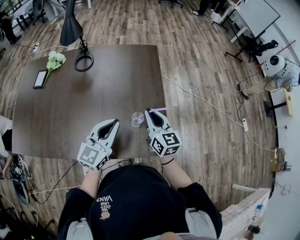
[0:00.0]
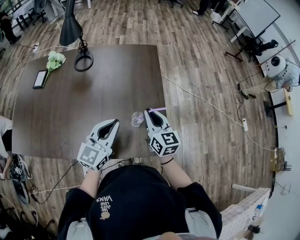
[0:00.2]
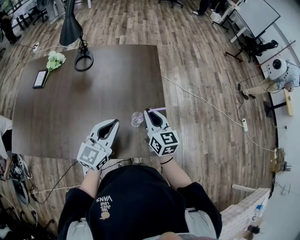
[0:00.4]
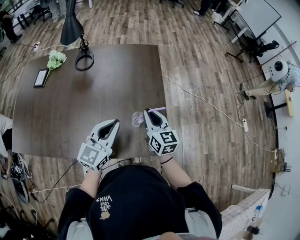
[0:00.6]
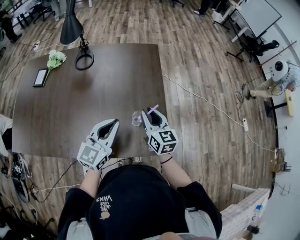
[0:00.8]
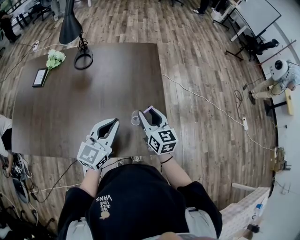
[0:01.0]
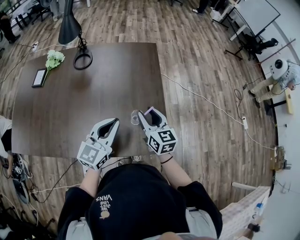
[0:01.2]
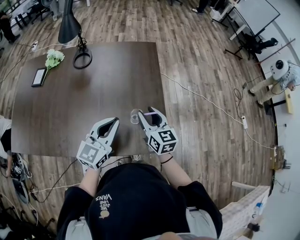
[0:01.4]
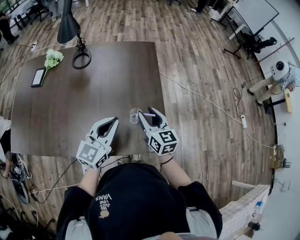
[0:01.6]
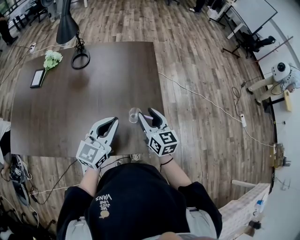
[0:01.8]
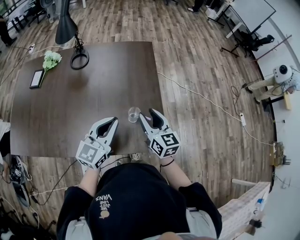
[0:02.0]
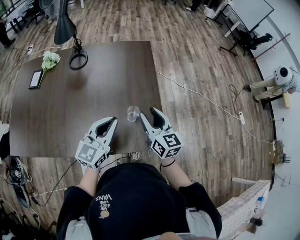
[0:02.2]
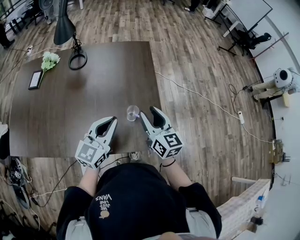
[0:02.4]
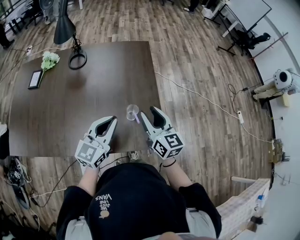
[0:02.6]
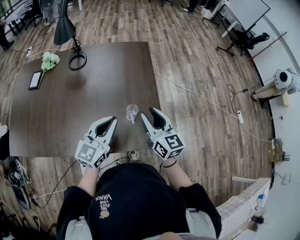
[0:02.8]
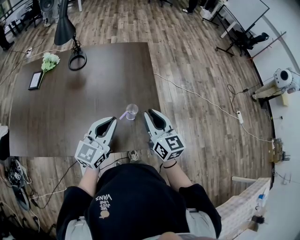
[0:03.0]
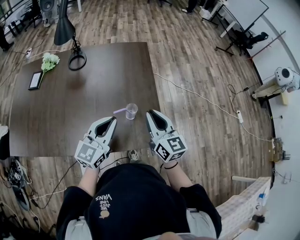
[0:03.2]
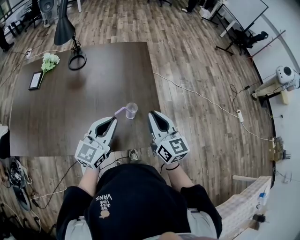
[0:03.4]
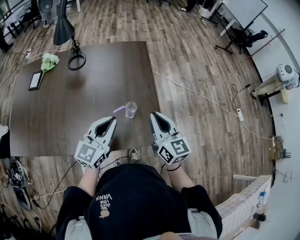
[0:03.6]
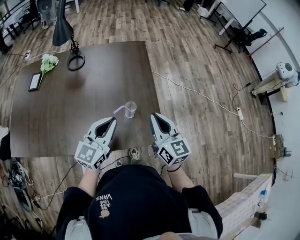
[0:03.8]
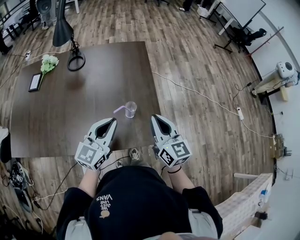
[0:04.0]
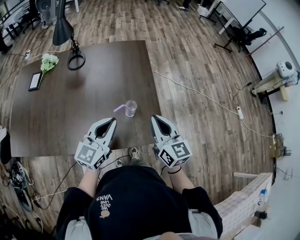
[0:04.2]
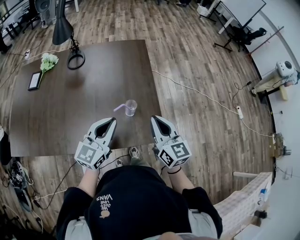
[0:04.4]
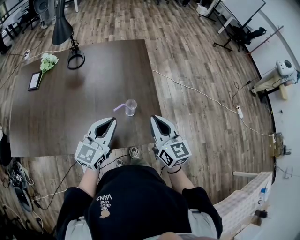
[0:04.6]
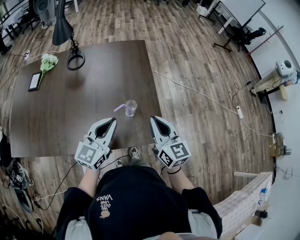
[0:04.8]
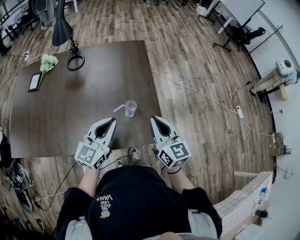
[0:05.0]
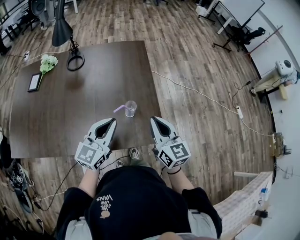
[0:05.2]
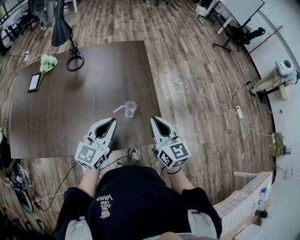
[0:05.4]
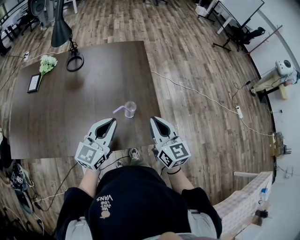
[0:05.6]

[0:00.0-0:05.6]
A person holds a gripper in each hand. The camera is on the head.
0:00.0 to 0:01.4: The right gripper opens.
0:01.4 to 0:02.8: The right gripper is displaced upward by approximately 5 cm.
0:02.8 to 0:04.2: The right gripper moves backward, approximately 5 cm, and closes.
0:04.2 to 0:05.6: Both grippers stay put.

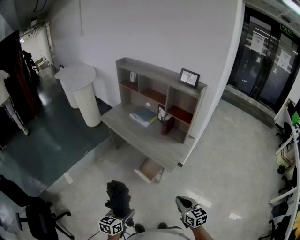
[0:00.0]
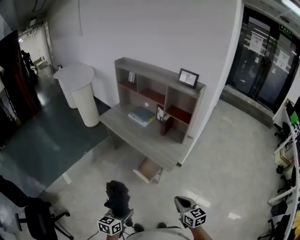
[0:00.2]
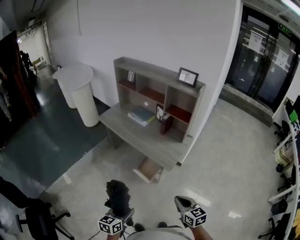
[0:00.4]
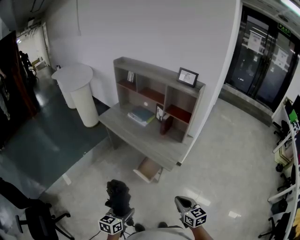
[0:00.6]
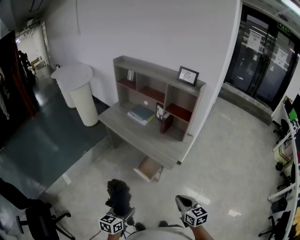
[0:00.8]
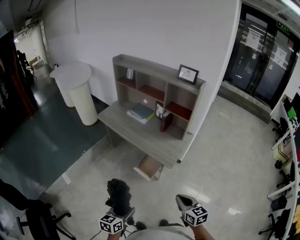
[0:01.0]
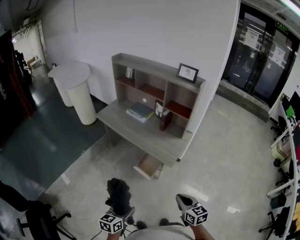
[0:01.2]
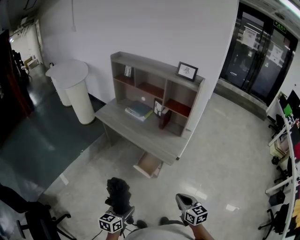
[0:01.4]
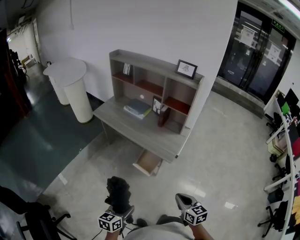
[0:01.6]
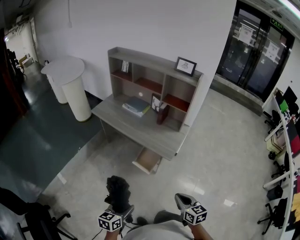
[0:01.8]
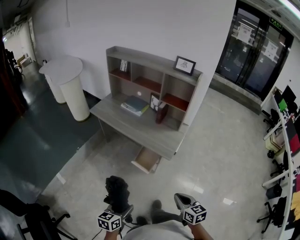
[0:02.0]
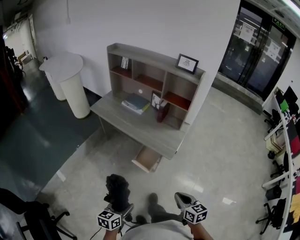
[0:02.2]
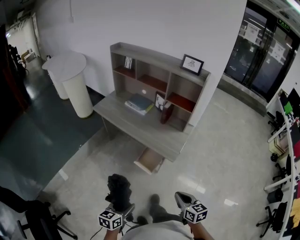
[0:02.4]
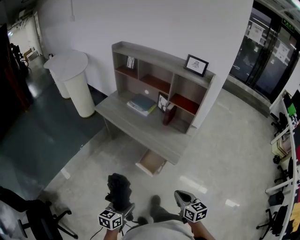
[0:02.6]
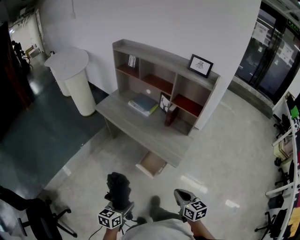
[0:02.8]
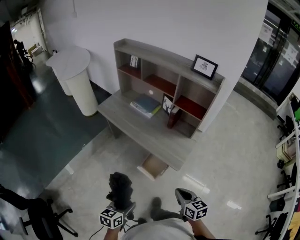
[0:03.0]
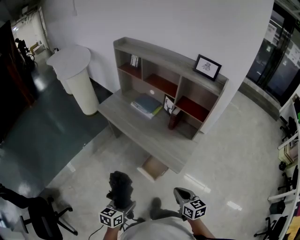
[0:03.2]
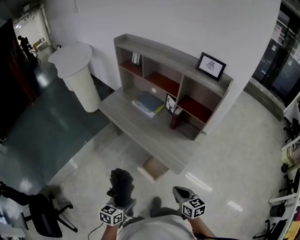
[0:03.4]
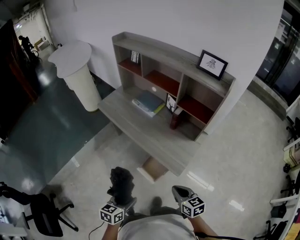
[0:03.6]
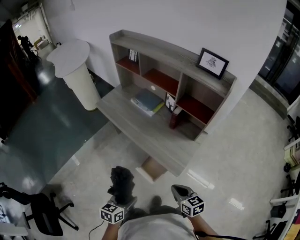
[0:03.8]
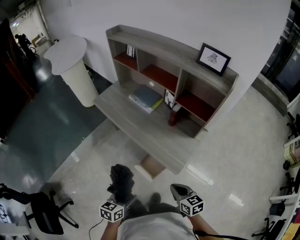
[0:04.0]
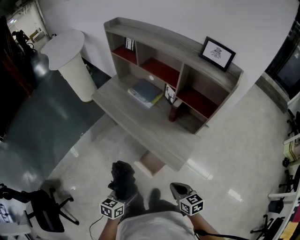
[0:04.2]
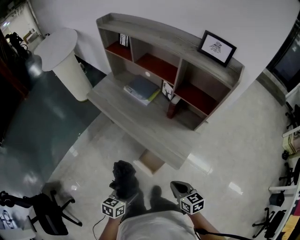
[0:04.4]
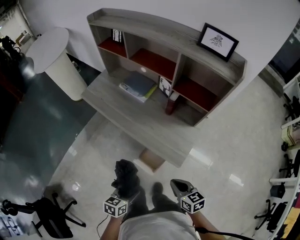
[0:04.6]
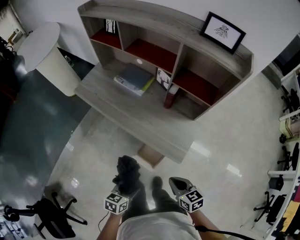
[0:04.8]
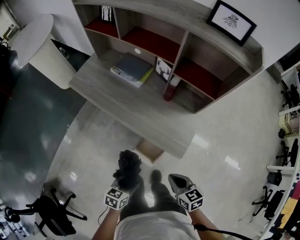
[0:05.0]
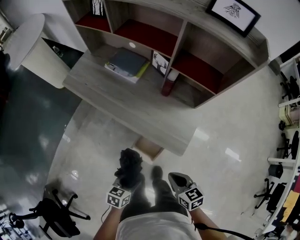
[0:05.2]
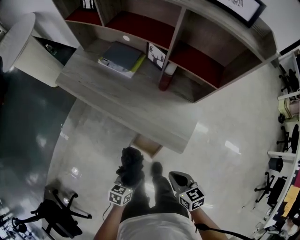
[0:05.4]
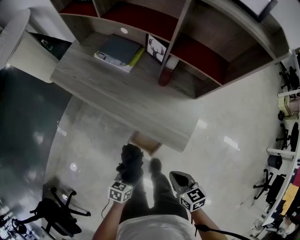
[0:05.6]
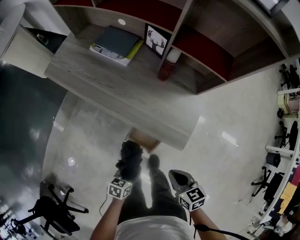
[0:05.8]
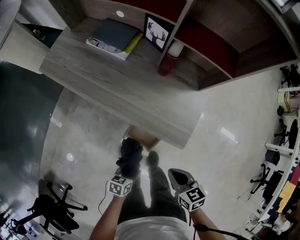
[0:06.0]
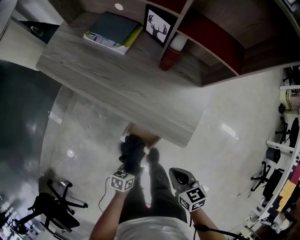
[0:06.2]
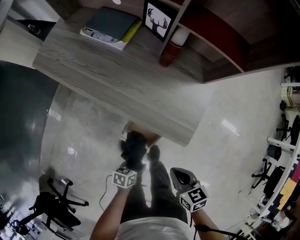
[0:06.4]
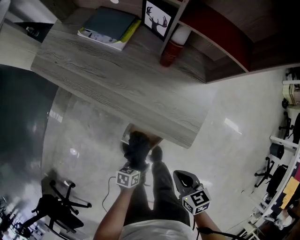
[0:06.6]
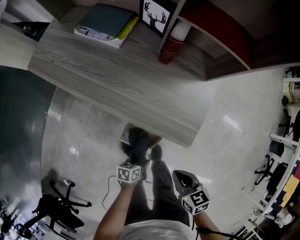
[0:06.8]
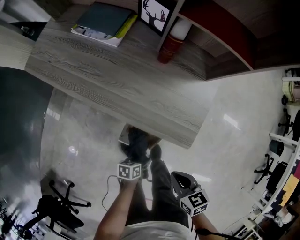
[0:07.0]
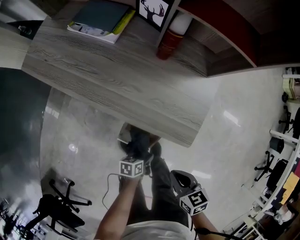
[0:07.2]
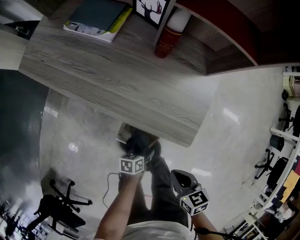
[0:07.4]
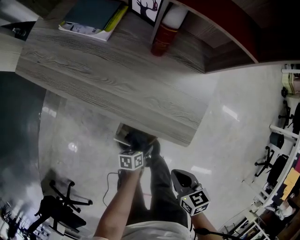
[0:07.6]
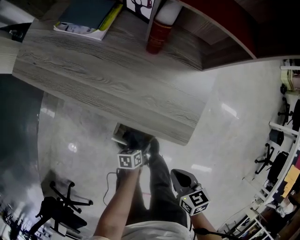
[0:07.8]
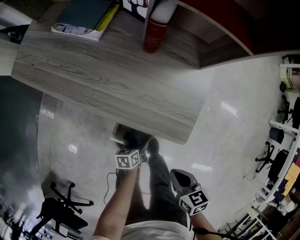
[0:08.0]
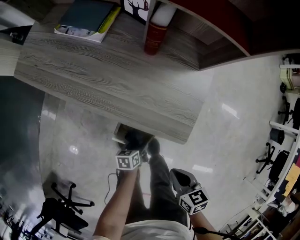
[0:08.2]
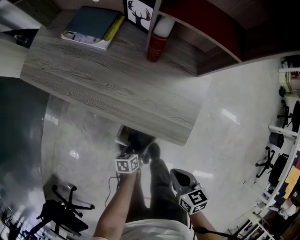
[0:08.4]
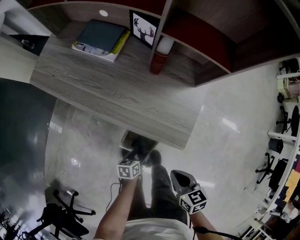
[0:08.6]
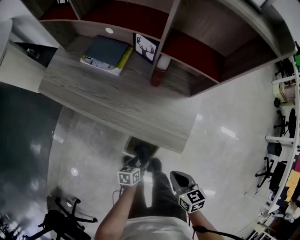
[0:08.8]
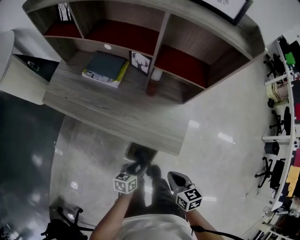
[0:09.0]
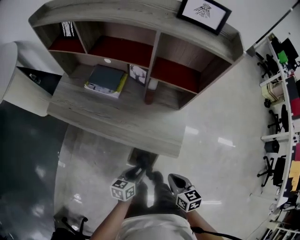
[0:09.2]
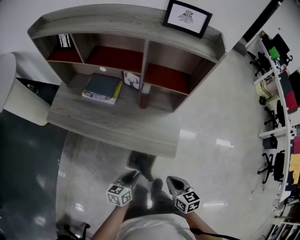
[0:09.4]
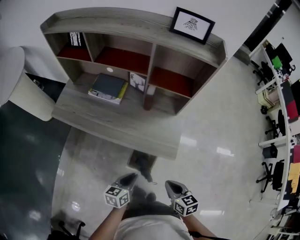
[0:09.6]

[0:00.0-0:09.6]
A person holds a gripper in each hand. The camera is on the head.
0:00.0 to 0:01.6: The two grippers go some 5 cm to the left.
0:01.6 to 0:03.2: The grippers both shift forward by about 20 cm.
0:03.2 to 0:04.8: The two grippers go some 20 cm forward and downward.
0:04.8 to 0:06.4: The left gripper travels downward by approximately 30 cm, and turns by approximately 20 degrees. The right gripper travels downward by some 15 cm.
0:06.4 to 0:08.0: The left gripper goes approximately 15 cm downward and forward; the right gripper goes about 5 cm downward.
0:08.0 to 0:09.6: The right gripper goes approximately 20 cm upward; the left gripper moves upward, some 40 cm, changes its angle by roughly 30 degrees, and closes its fingers.

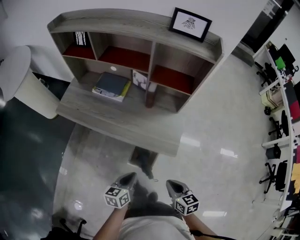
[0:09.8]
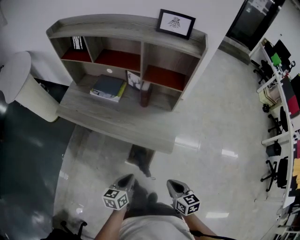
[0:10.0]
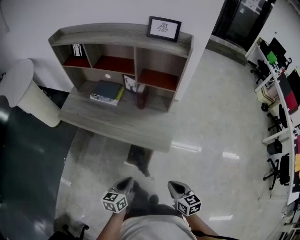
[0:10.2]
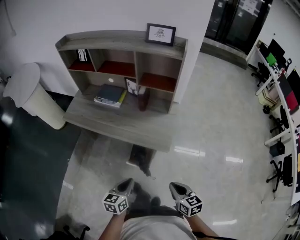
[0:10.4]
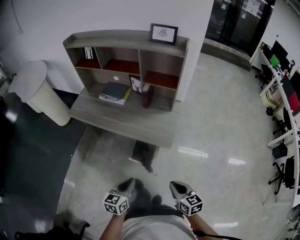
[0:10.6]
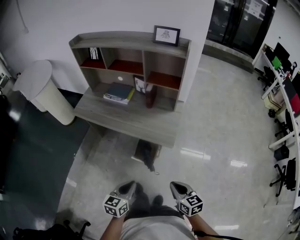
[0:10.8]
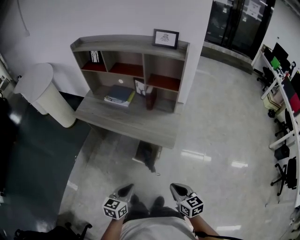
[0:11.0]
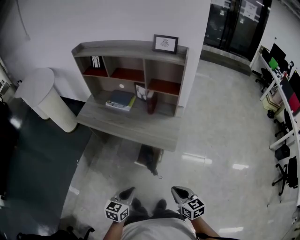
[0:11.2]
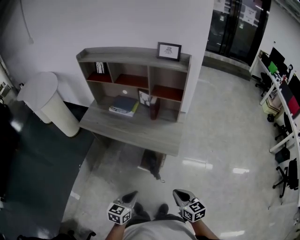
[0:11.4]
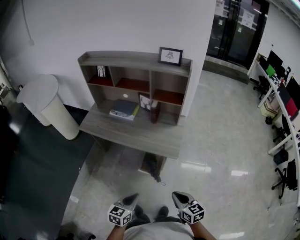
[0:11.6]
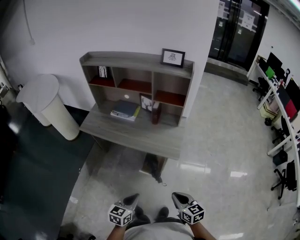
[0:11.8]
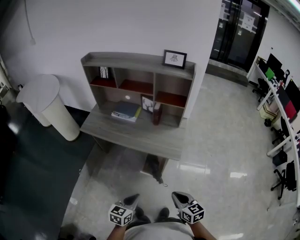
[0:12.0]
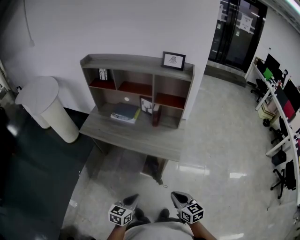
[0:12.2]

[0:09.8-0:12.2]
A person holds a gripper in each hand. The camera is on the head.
0:09.8 to 0:11.0: The two grippers go approximately 20 cm backward and upward.
0:11.0 to 0:12.2: The two grippers go some 10 cm to the left.

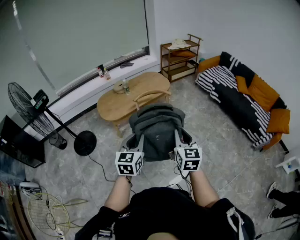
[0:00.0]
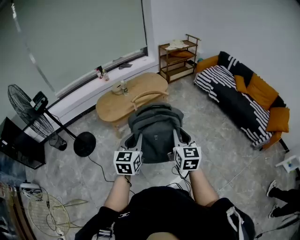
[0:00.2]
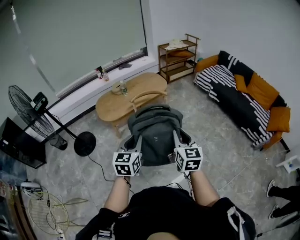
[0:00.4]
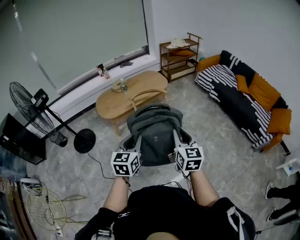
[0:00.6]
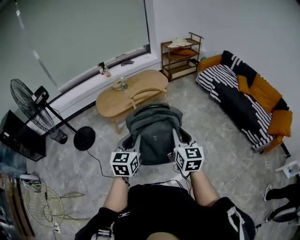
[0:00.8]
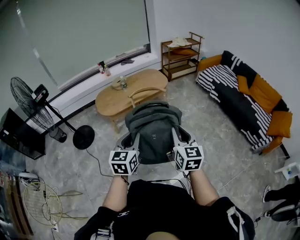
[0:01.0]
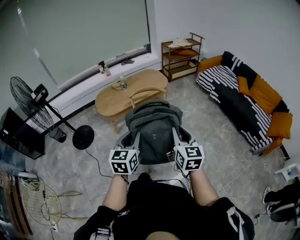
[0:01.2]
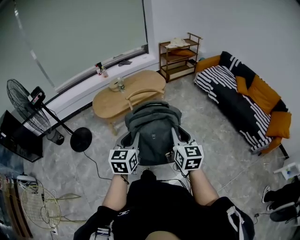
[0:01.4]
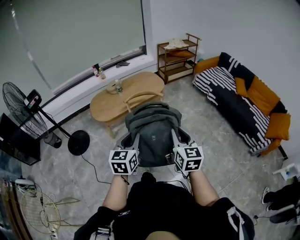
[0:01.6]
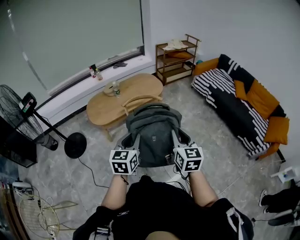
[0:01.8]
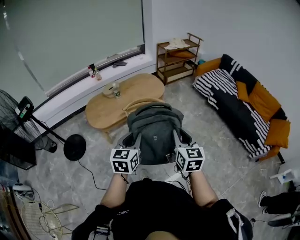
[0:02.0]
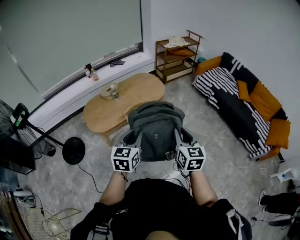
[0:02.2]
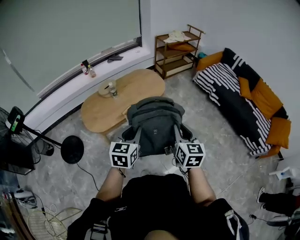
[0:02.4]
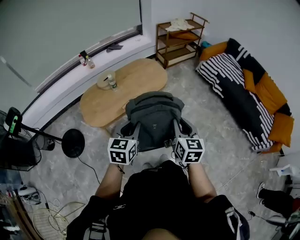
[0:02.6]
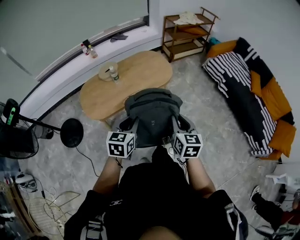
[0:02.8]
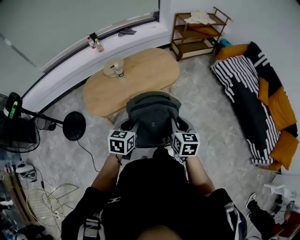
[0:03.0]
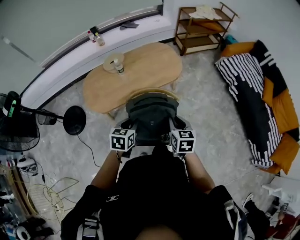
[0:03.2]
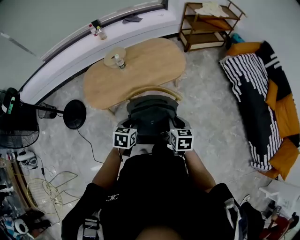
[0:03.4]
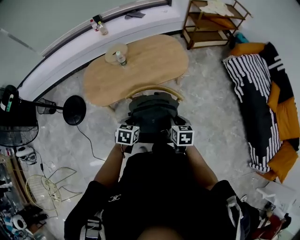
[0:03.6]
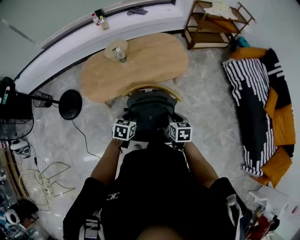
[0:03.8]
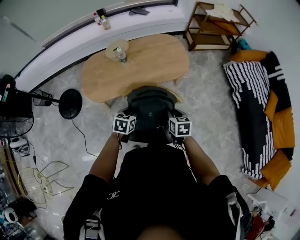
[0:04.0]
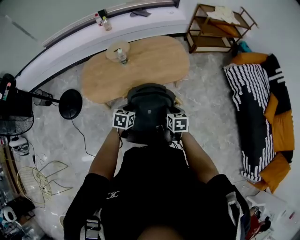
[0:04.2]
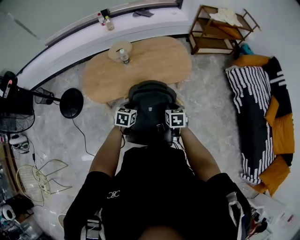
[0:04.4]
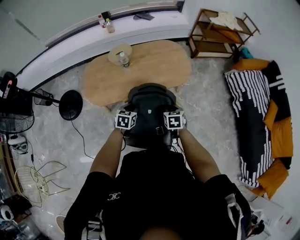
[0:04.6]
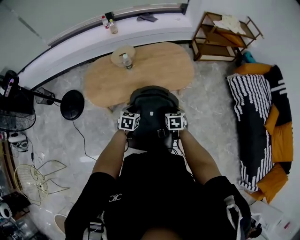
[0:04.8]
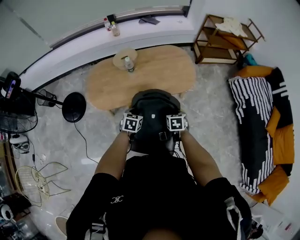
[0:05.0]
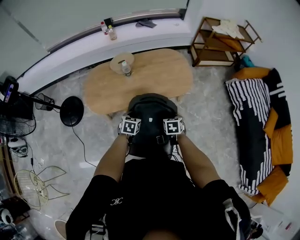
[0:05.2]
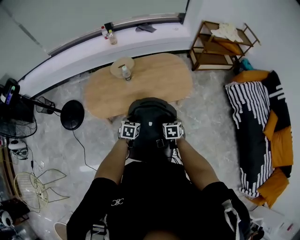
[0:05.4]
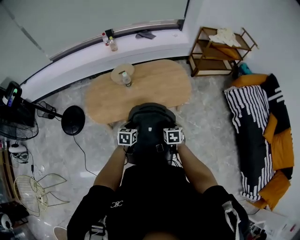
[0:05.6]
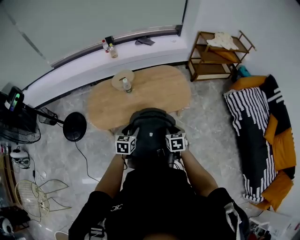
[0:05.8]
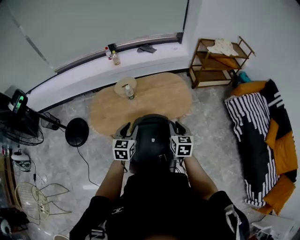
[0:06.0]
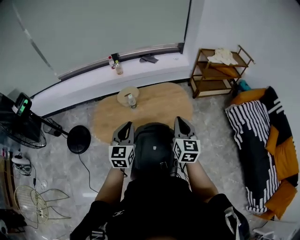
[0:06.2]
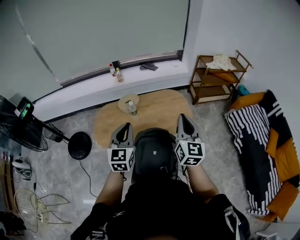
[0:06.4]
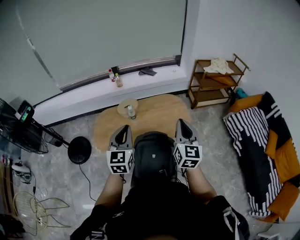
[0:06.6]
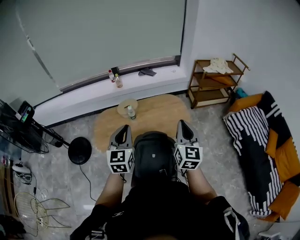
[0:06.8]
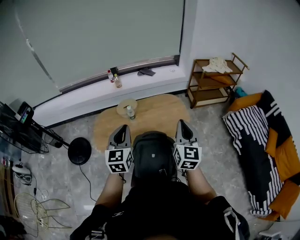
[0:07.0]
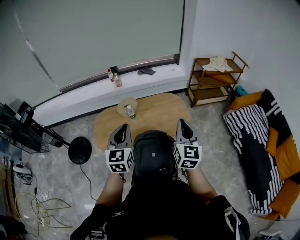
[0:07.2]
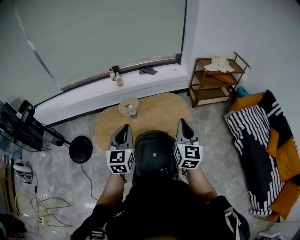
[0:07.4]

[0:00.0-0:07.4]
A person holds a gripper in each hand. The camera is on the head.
0:00.0 to 0:01.4: Both grippers travel together to the right, some 10 cm.
0:01.4 to 0:03.0: The pair of grippers is taken forward, about 50 cm. The right gripper changes its angle by approximately 20 degrees; the left gripper rotates about 20 degrees.
0:03.0 to 0:04.4: The right gripper moves forward and downward, approximately 25 cm, and changes its angle by approximately 20 degrees. Meanwhile the left gripper heads downward and forward, covering roughly 25 cm.
0:04.4 to 0:06.0: The two grippers go some 15 cm upward. The left gripper changes its angle by some 30 degrees, and opens, while the right gripper rotates roughly 20 degrees.
0:06.0 to 0:07.4: Both grippers move upward, about 20 cm. The left gripper closes its fingers, while the right gripper changes its angle by roughly 30 degrees, and closes its fingers.
